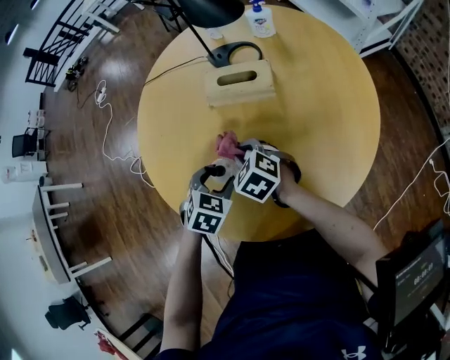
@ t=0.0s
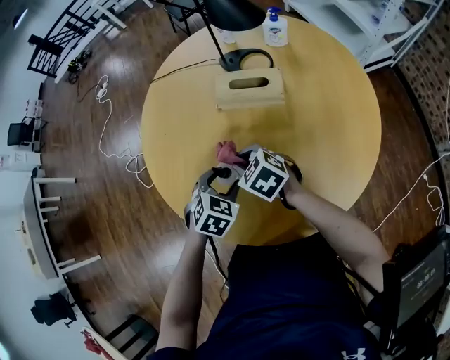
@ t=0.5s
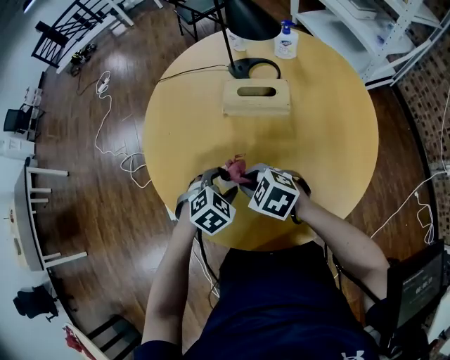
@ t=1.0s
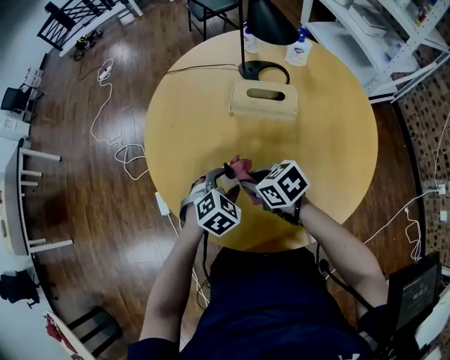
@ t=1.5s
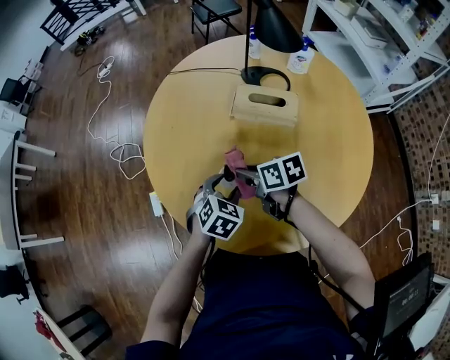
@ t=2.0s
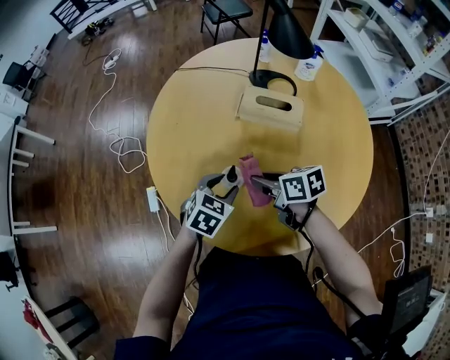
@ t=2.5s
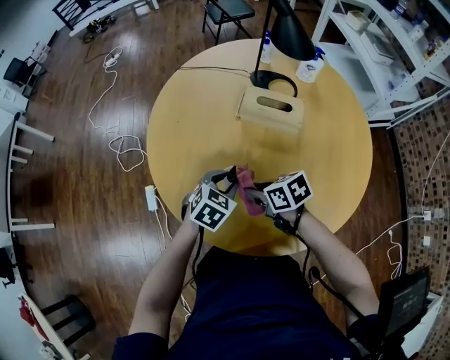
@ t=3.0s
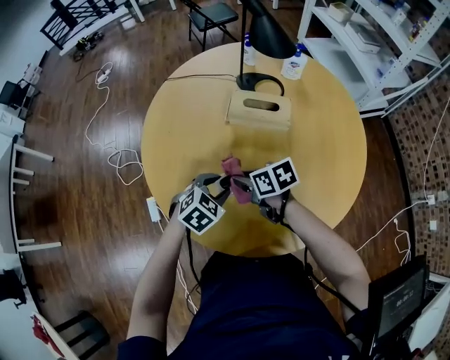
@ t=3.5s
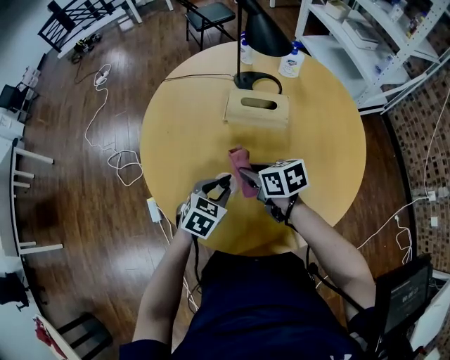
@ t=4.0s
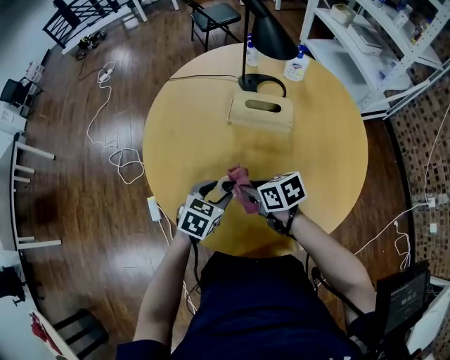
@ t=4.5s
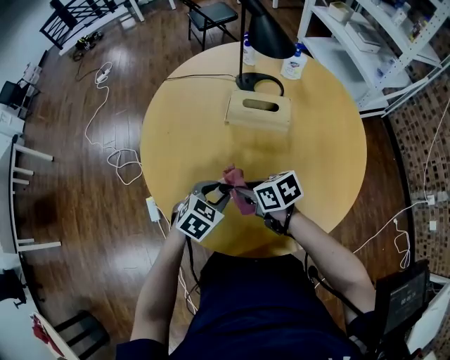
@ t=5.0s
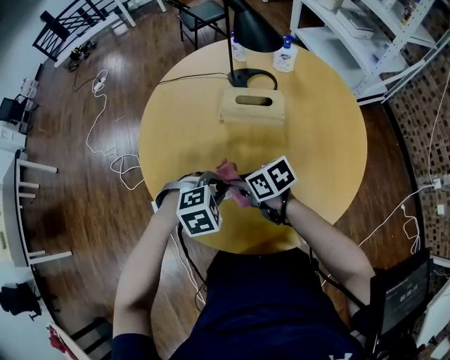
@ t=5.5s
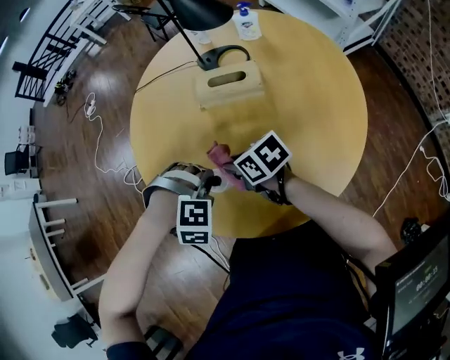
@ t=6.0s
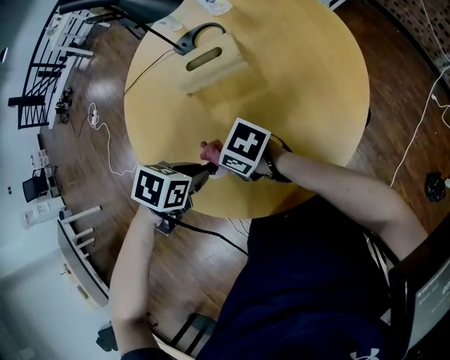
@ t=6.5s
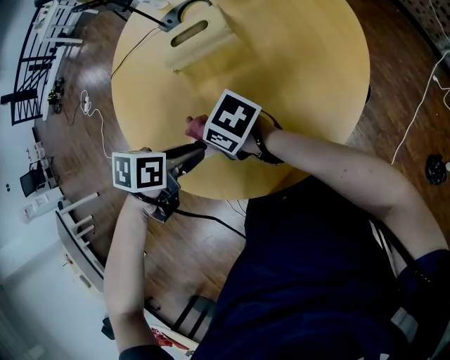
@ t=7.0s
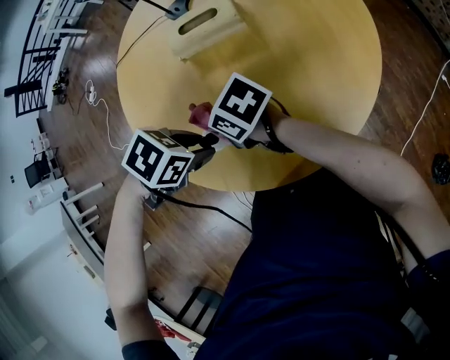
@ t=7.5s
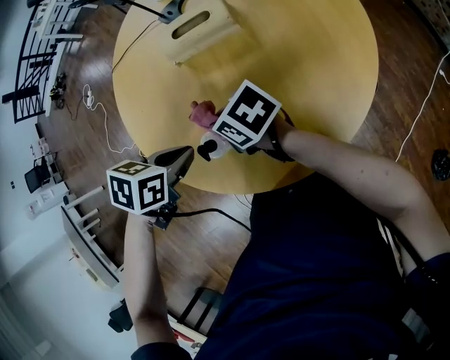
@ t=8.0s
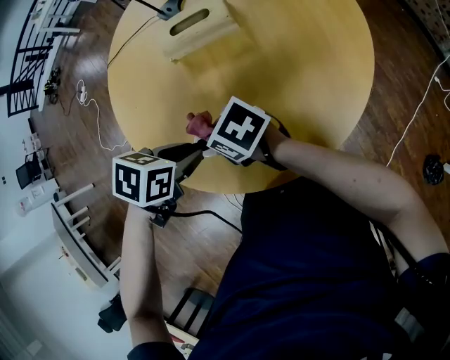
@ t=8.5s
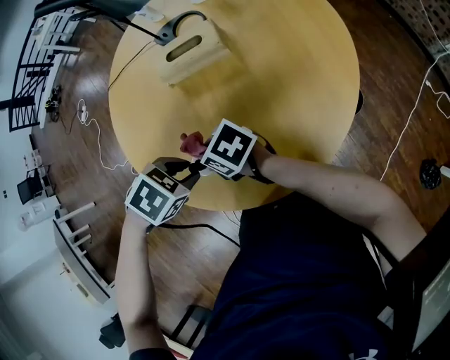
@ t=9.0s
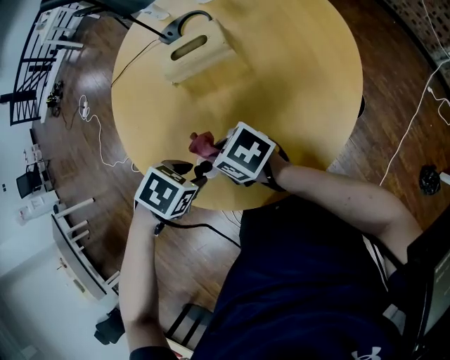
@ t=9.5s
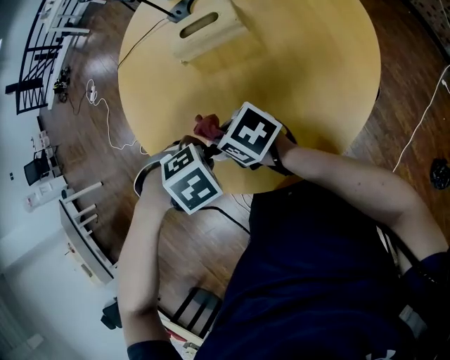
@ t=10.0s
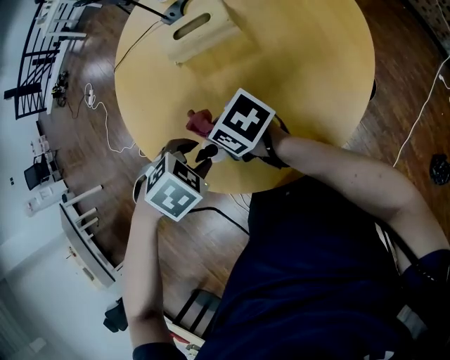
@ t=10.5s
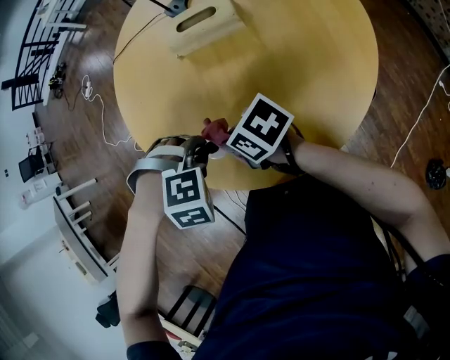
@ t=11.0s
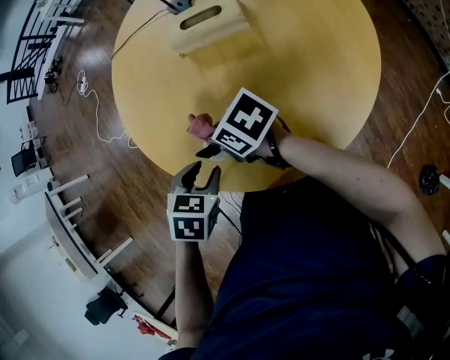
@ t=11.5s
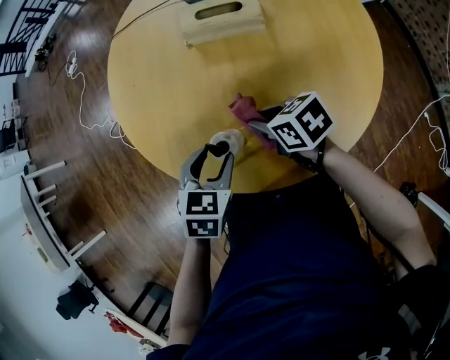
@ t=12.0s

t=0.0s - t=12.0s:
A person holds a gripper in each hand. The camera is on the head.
t=0.0s - t=2.0s: The right gripper rolls clockwise, seen from behind, by some 40 degrees.
t=4.0s - t=6.0s: The left gripper rolls clockwise, seen from behind, by roughly 80 degrees.
t=6.0s - t=8.0s: The left gripper twists roughly 80 degrees counterclockwise, seen from behind, and closes its fingers.
t=8.0s - t=10.0s: The left gripper moves about 5 cm, and rolls clockwise, seen from behind, by approximately 50 degrees.
t=10.0s - t=12.0s: The right gripper changes place by some 10 cm; the left gripper swivels roughly 70 degrees.

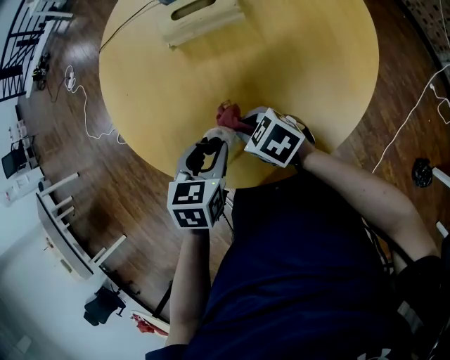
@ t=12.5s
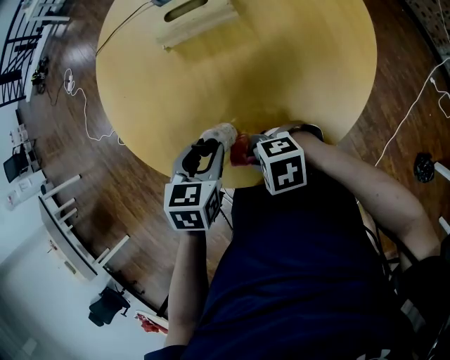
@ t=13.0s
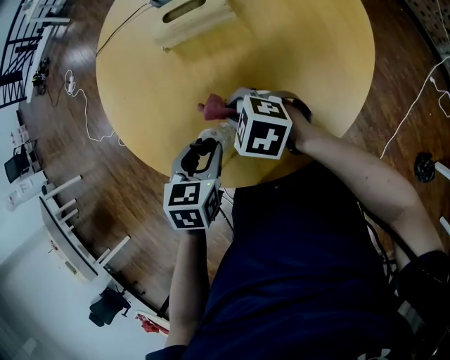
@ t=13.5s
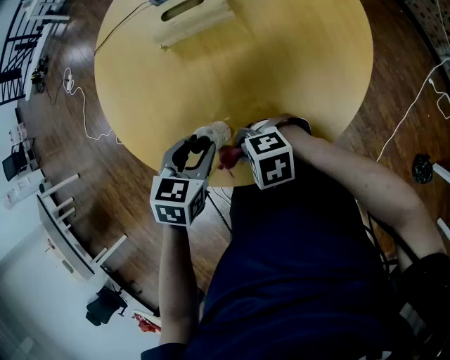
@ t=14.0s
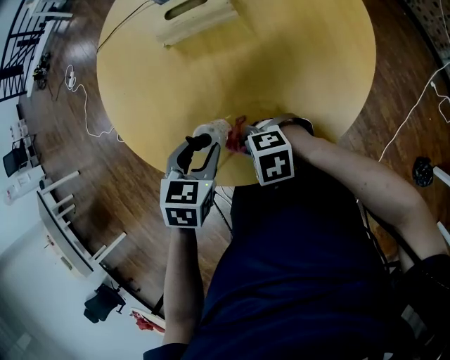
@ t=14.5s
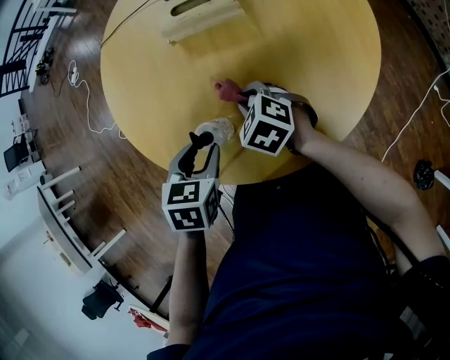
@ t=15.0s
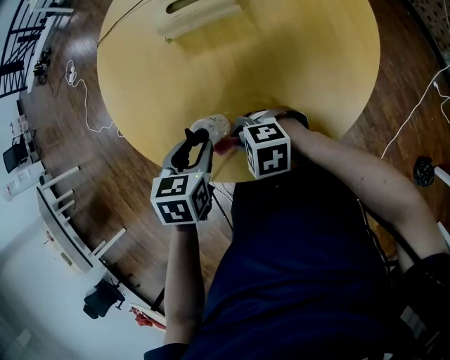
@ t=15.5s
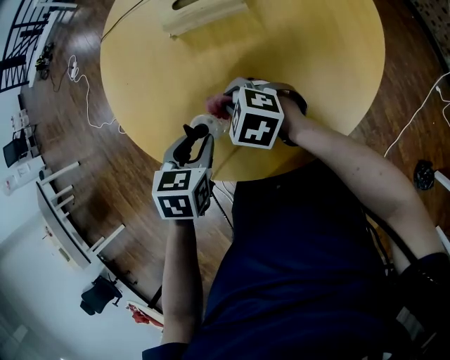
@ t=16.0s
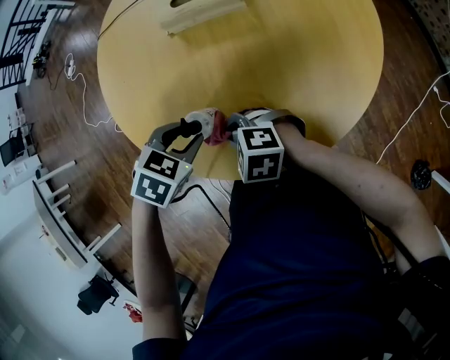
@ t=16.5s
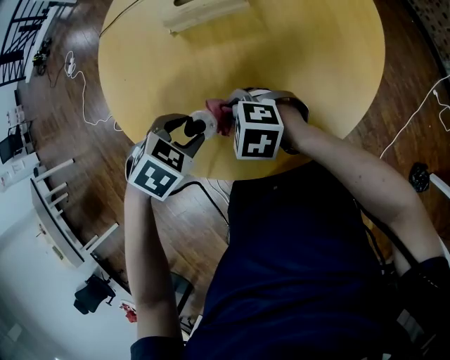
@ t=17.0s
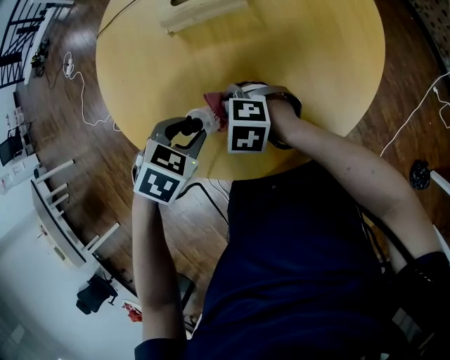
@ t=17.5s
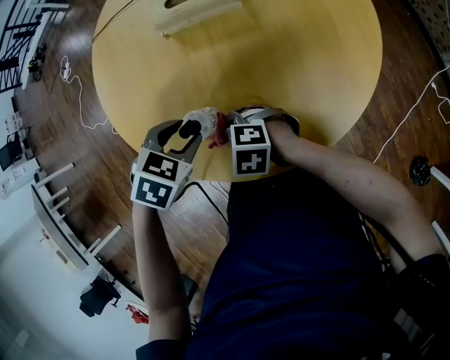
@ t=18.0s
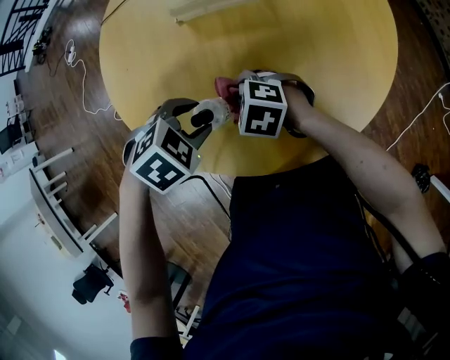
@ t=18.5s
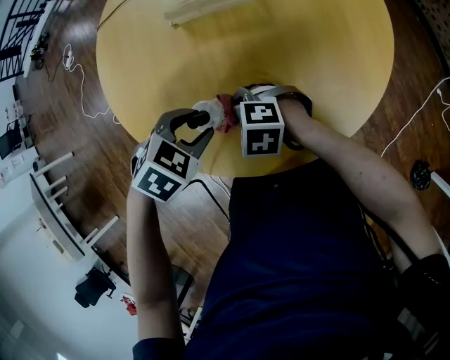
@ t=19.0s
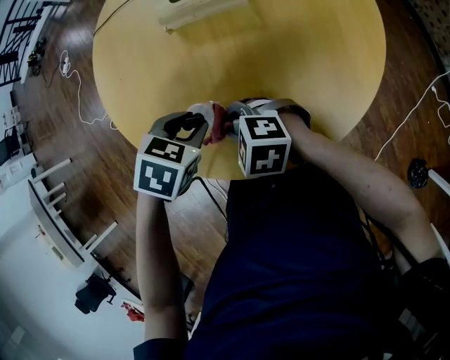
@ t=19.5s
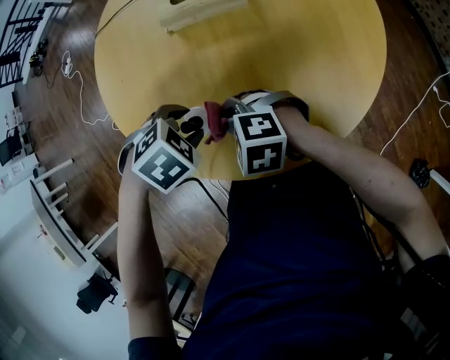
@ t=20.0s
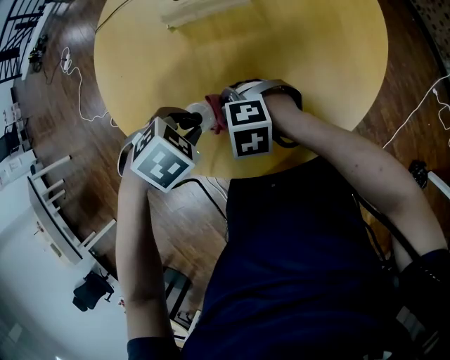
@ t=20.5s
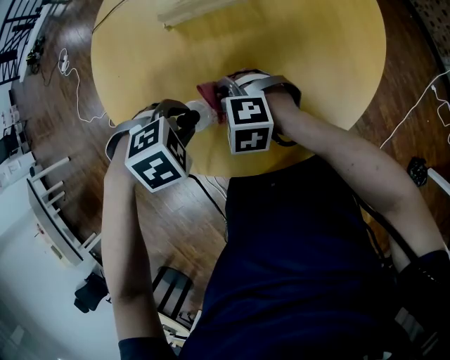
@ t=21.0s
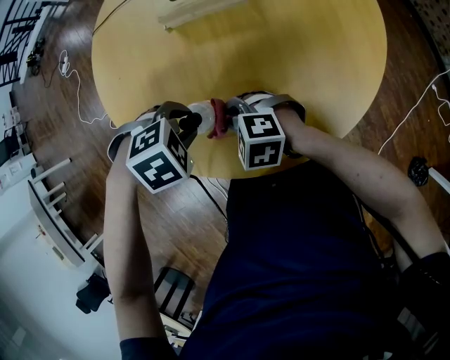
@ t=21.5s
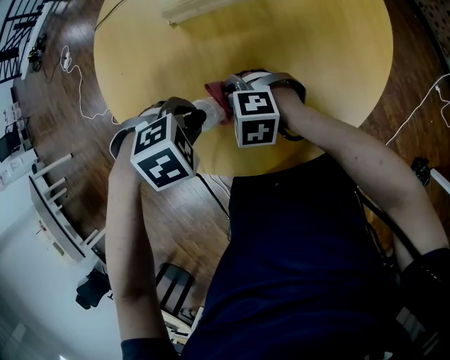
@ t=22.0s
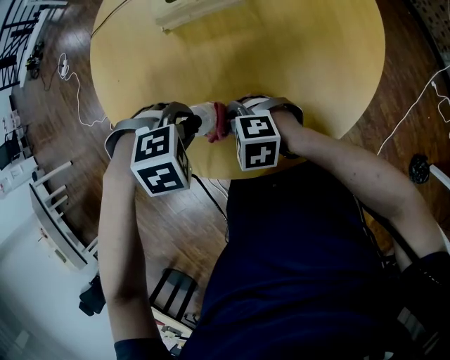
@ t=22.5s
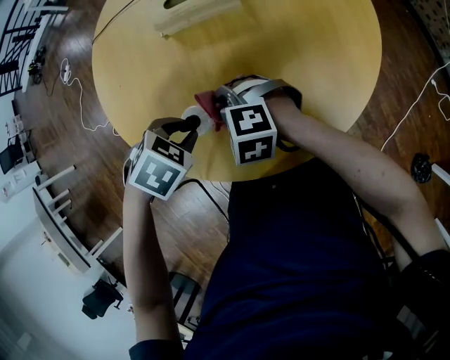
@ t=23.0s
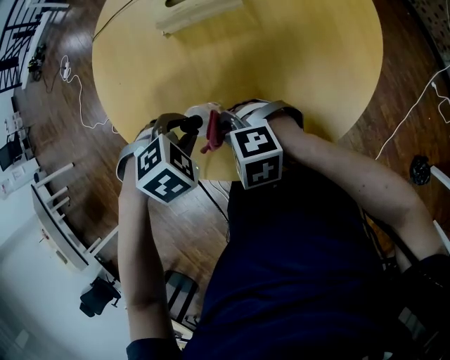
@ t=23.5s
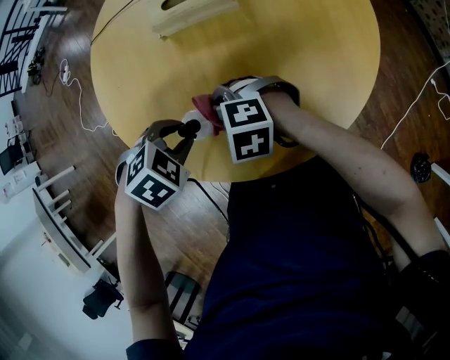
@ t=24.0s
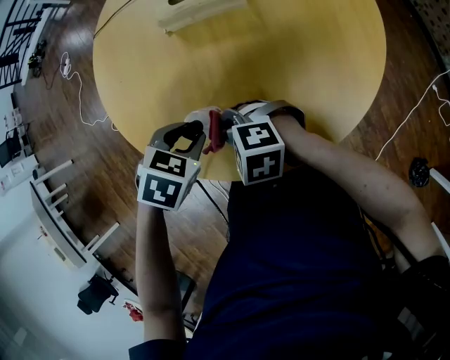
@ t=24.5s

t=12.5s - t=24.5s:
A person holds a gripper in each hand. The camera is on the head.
t=12.5s - t=14.5s: The right gripper shifts by about 10 cm, and swivels some 40 degrees.
t=14.5s - t=16.5s: The left gripper changes its angle by some 20 degrees.
t=16.5s - t=18.5s: The left gripper swivels some 20 degrees. The right gripper ends up approximately 10 cm from where it was.
t=20.5s - t=22.5s: The left gripper changes its angle by roughly 40 degrees.
t=22.5s - t=24.5s: The left gripper rotates around the line of its fingers by roughly 50 degrees, counterclockwise from behind.

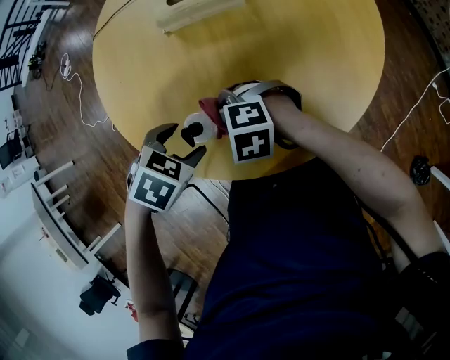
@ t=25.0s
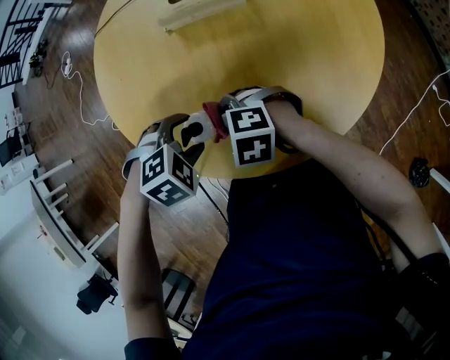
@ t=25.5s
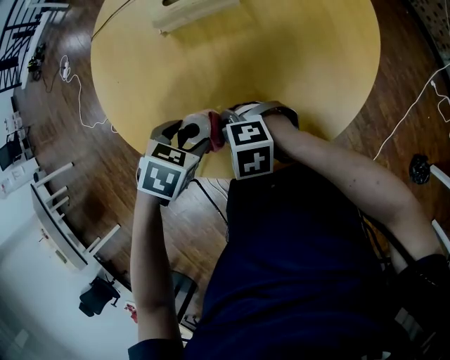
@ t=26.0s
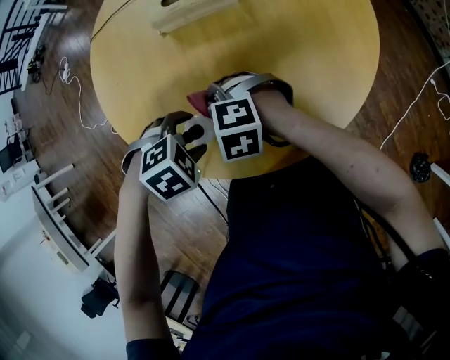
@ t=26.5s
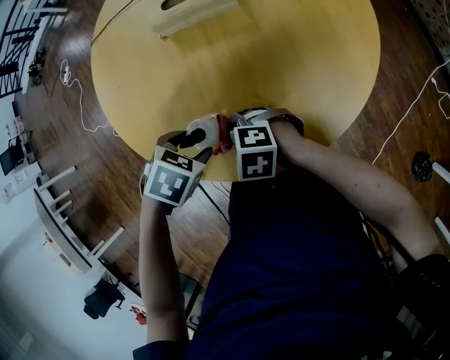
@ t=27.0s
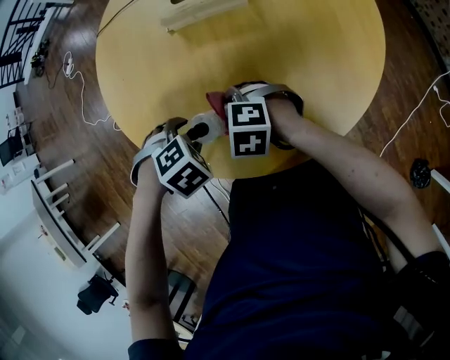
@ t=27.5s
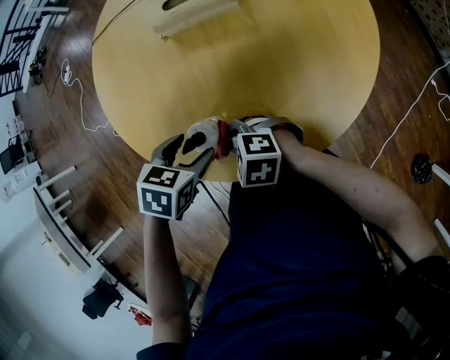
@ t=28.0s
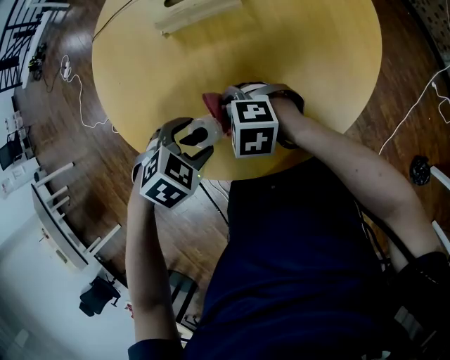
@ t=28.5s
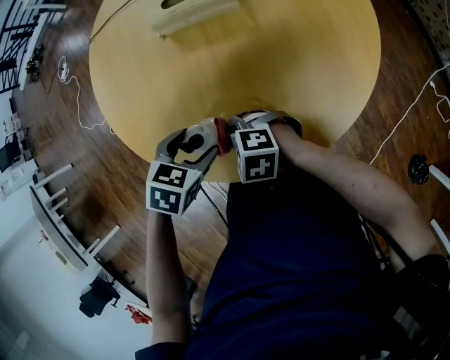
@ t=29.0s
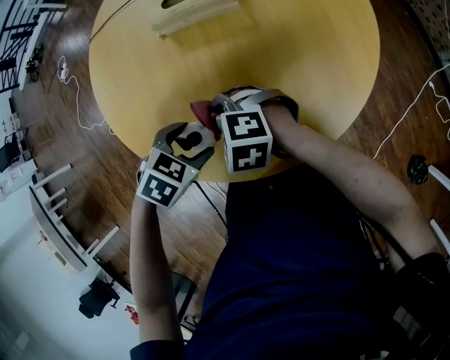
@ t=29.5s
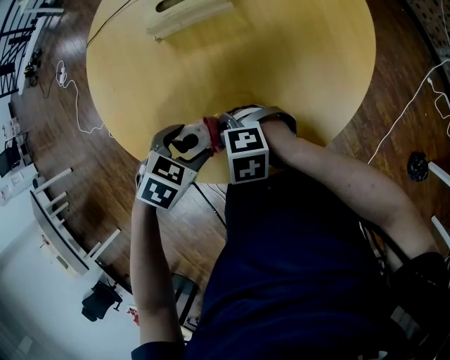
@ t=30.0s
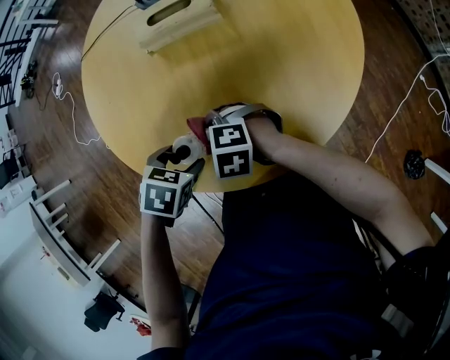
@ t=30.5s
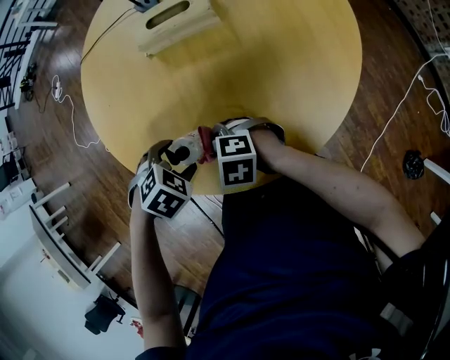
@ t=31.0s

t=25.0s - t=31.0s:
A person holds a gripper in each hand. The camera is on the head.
t=25.0s - t=27.0s: The right gripper ends up roughly 5 cm from where it was.
t=29.0s - t=31.0s: The left gripper rotates some 30 degrees.
